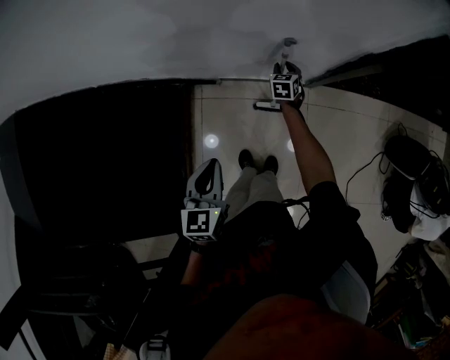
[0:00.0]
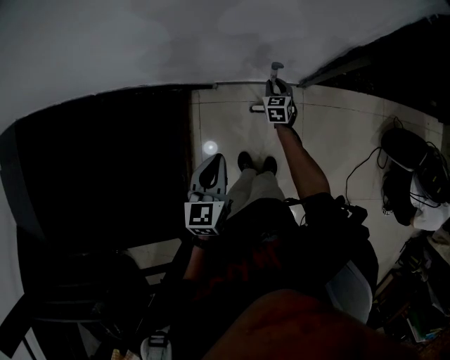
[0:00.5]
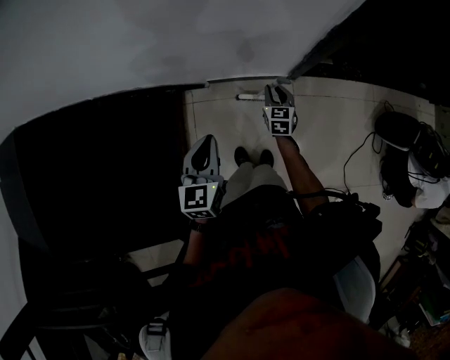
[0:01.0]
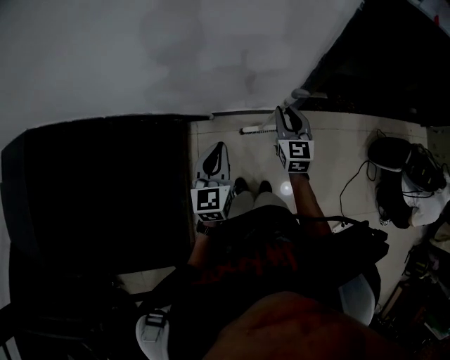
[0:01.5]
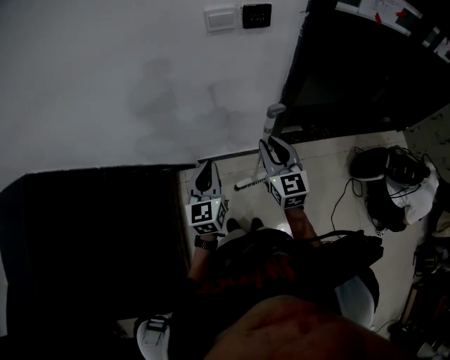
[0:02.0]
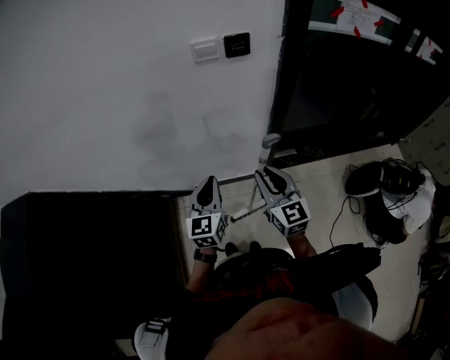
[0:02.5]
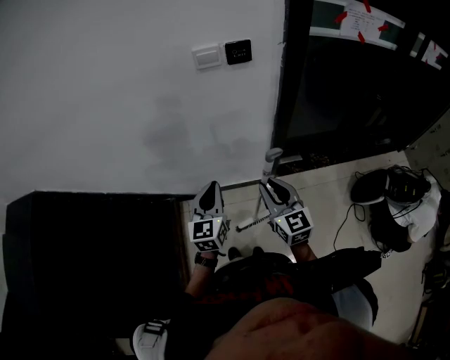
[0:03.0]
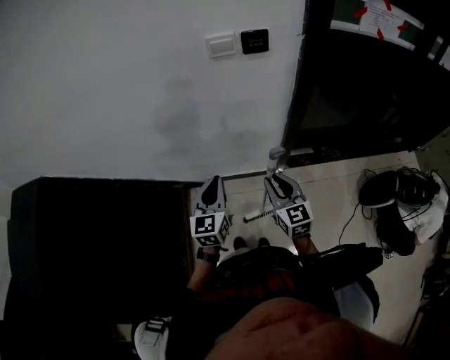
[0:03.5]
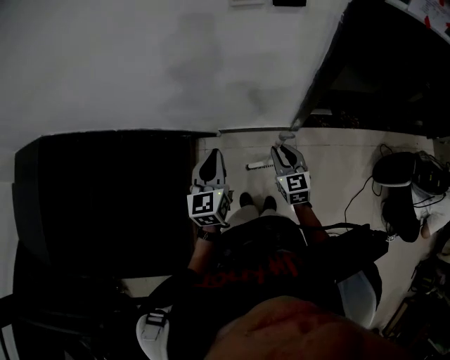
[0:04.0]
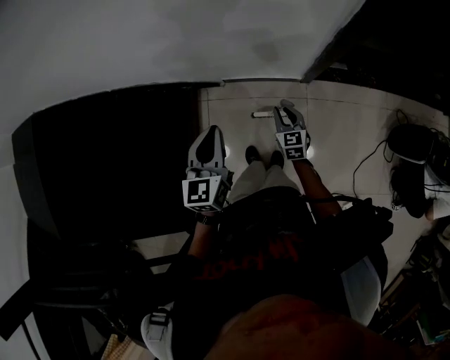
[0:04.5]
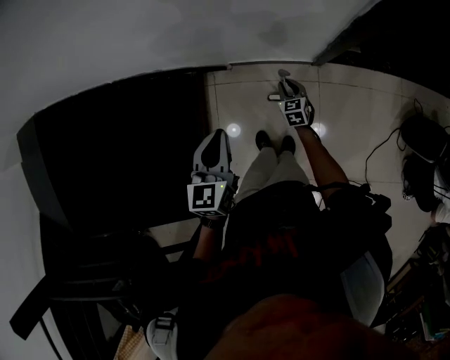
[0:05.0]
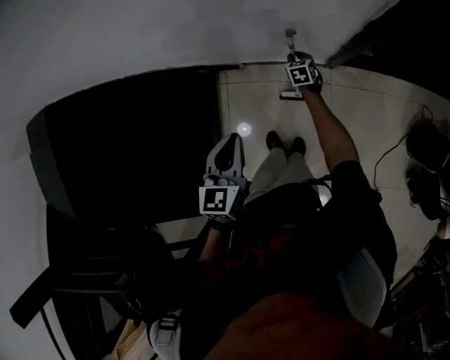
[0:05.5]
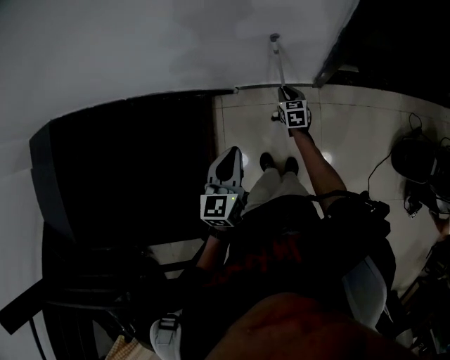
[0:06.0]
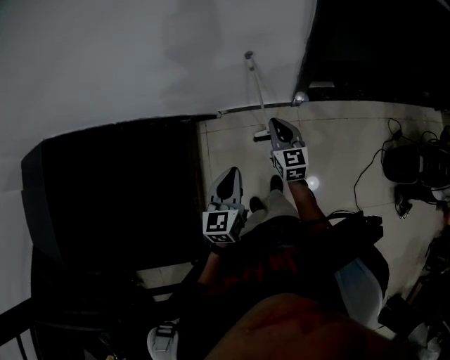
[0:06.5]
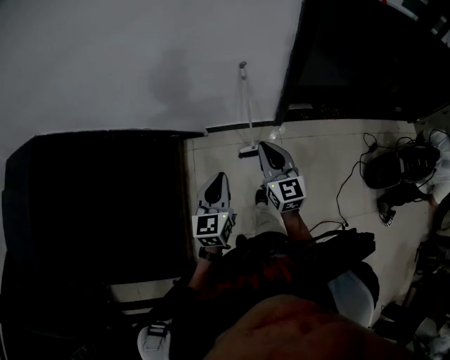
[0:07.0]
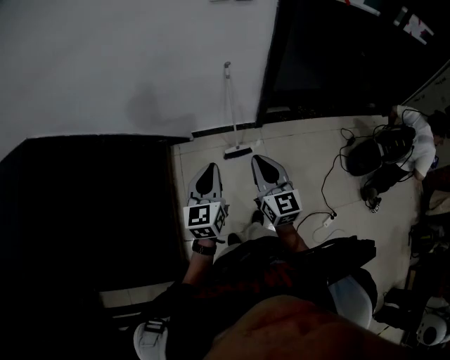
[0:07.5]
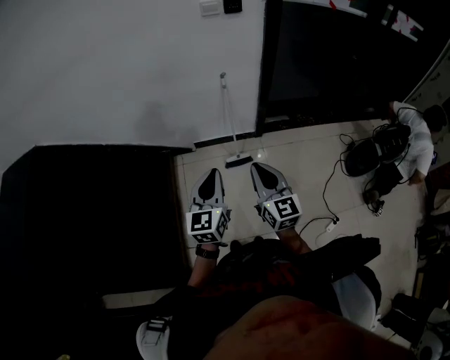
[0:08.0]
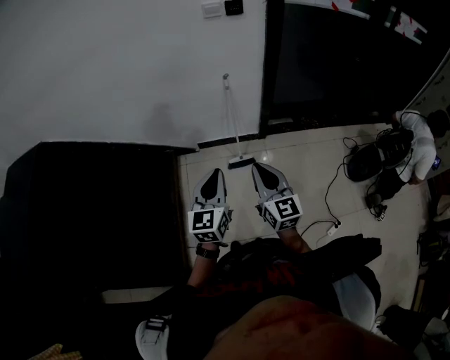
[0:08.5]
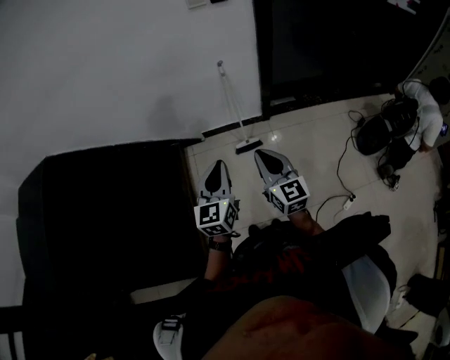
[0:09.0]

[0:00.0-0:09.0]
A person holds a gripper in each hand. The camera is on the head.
0:00.0 to 0:02.0: The left gripper goes approximately 15 cm upward, and changes its angle by roughly 30 degrees, while the right gripper is displaced upward and backward by some 60 cm, and points its fingers approximately 40 degrees further upward.
0:02.0 to 0:04.5: The right gripper is displaced downward by approximately 35 cm, and changes its angle by about 20 degrees, while the left gripper travels downward and to the left by approximately 10 cm.
0:04.5 to 0:07.0: The left gripper moves backward, some 25 cm. Meanwhile the right gripper heads upward and backward, covering some 35 cm, and changes its angle by some 30 degrees.
0:07.0 to 0:09.0: The left gripper shifts about 20 cm backward and upward. The right gripper shifts about 25 cm backward.

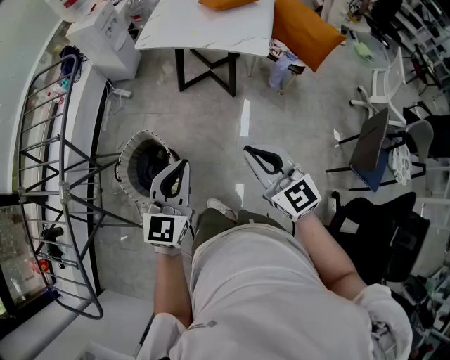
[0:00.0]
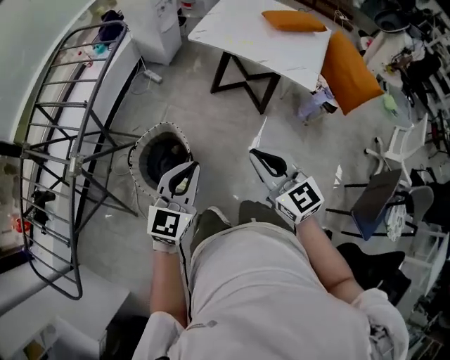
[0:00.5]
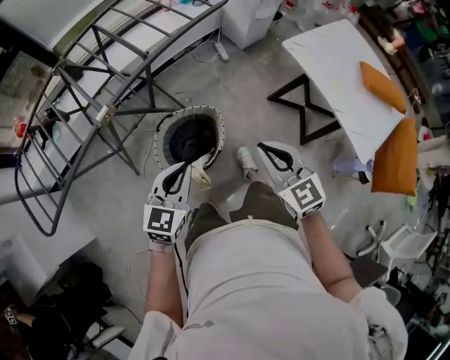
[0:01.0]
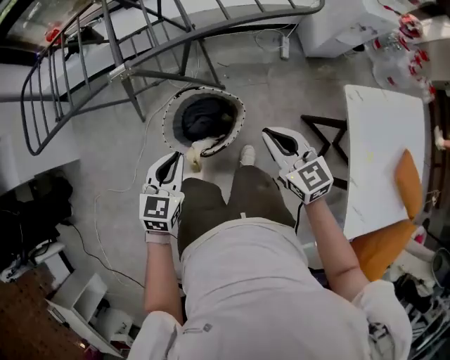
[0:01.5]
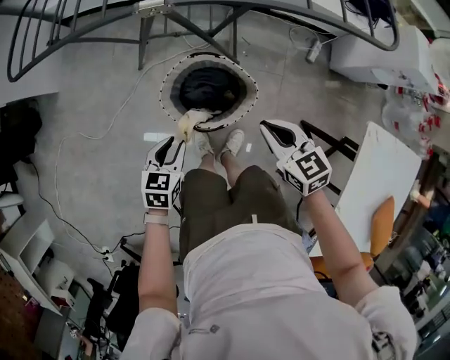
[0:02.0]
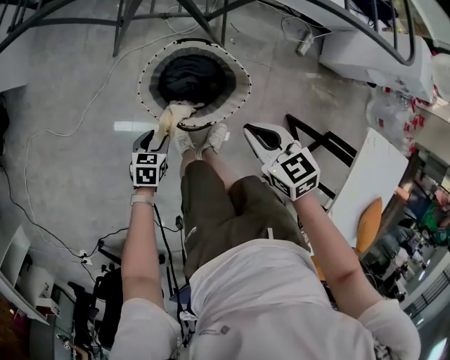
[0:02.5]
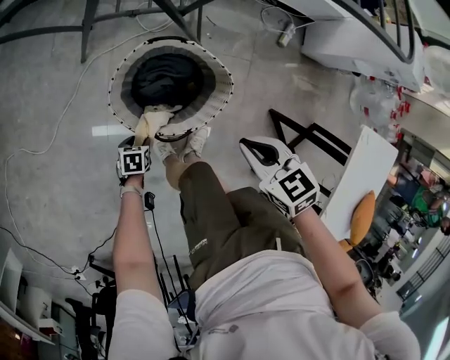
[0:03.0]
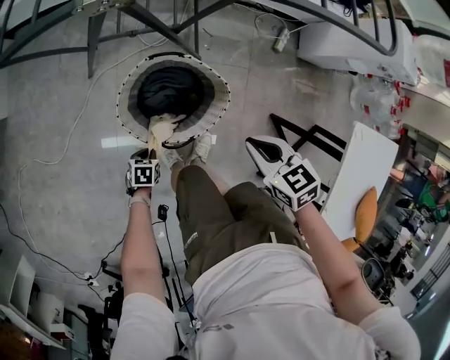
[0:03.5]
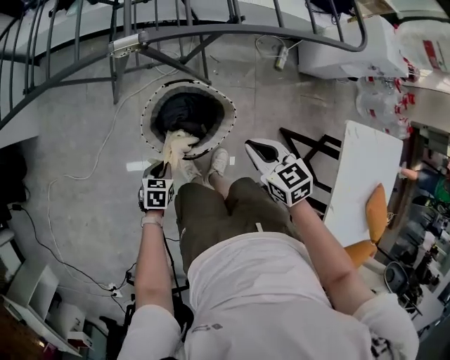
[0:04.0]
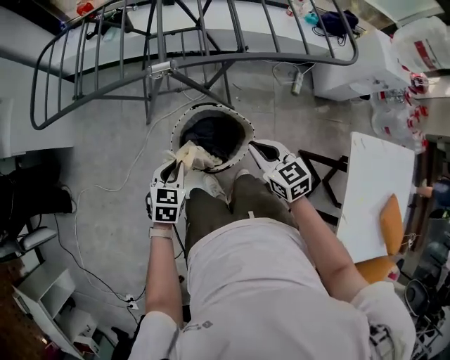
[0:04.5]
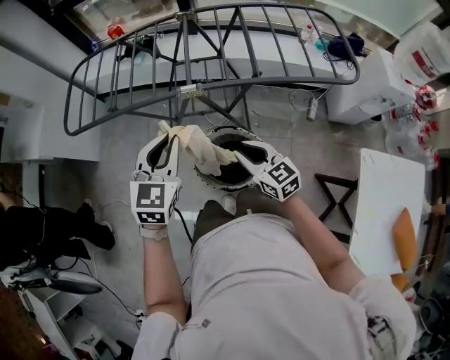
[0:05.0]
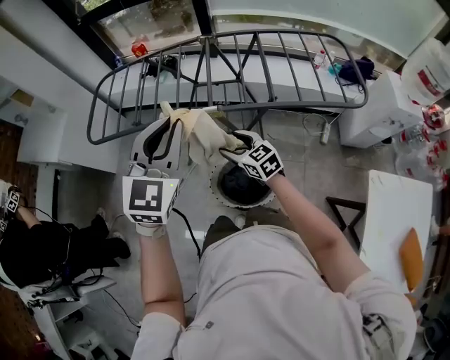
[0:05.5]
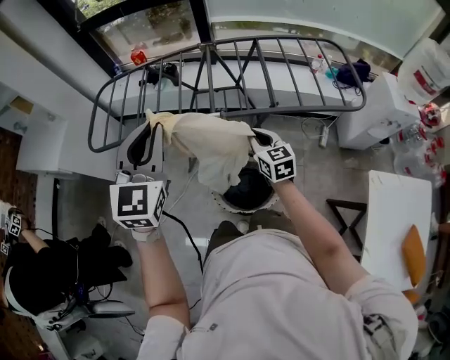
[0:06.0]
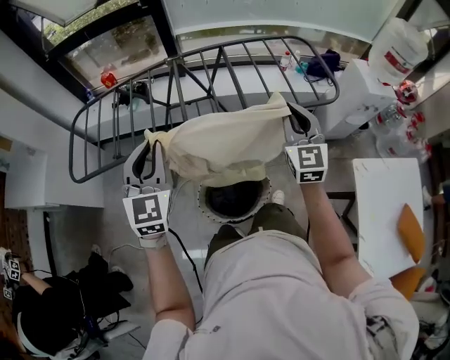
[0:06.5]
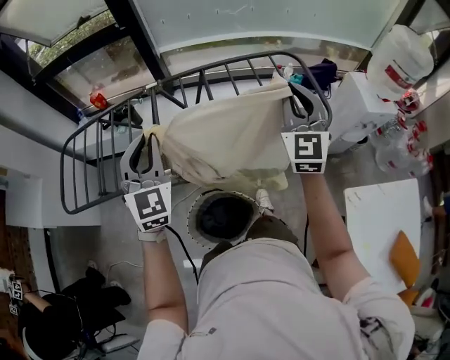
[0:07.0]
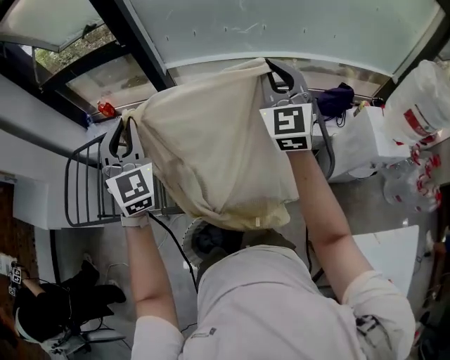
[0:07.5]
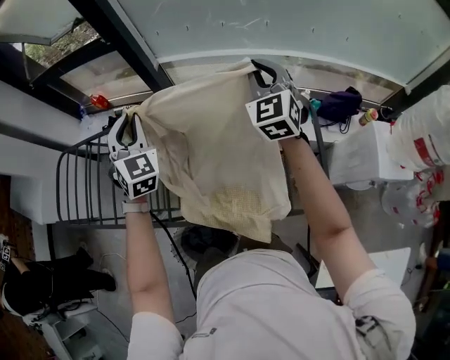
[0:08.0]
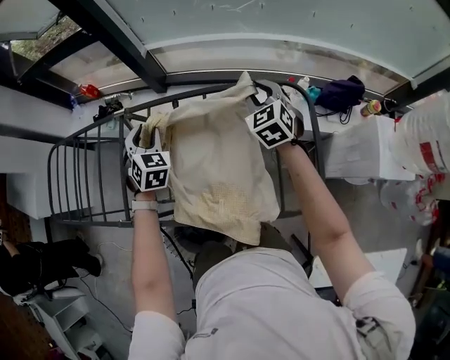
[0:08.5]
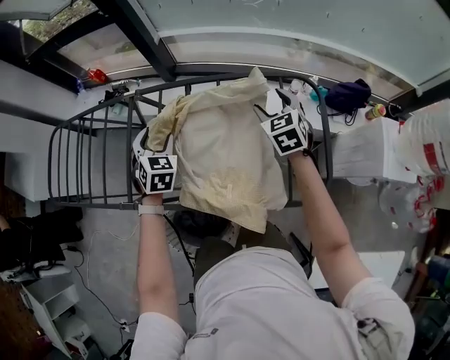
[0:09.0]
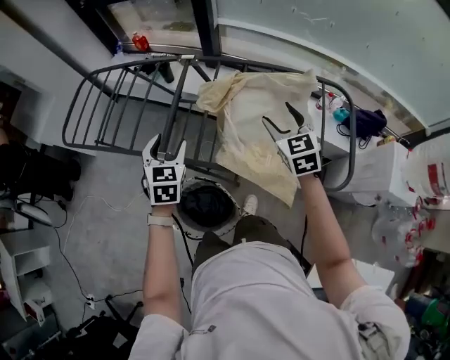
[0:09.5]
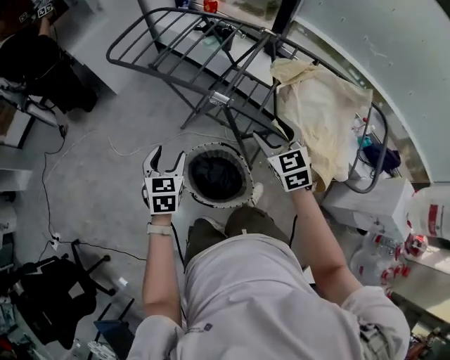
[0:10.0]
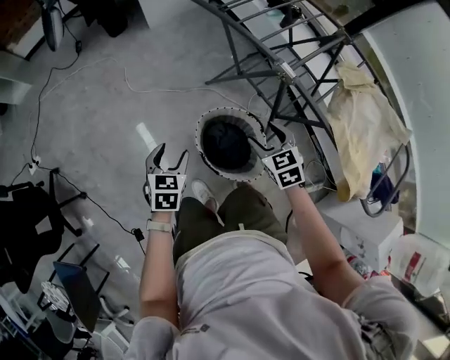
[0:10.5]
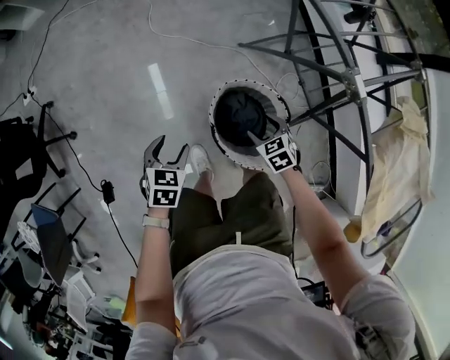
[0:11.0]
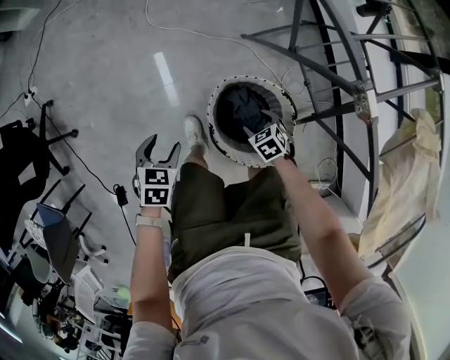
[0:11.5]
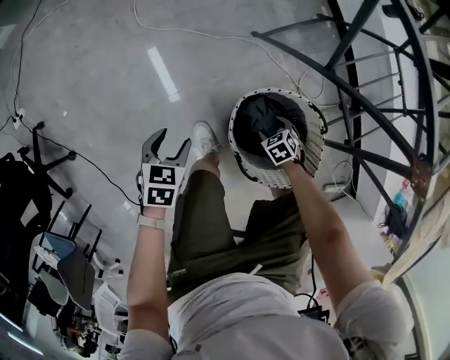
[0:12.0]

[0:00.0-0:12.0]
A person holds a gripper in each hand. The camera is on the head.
0:00.0 to 0:02.0: The right gripper moves some 50 cm, and changes its angle by about 90 degrees. Meanwhile the left gripper is displaced downward by about 30 cm, points its fingers roughly 40 degrees further downward, and opens its fingers.
0:02.0 to 0:04.0: The right gripper reaches roughly 10 cm downward, then returns. The left gripper travels downward by approximately 15 cm, and opens, then closes again.
0:04.0 to 0:06.0: The right gripper shifts some 25 cm forward, upward and to the left, rotates roughly 30 degrees, and opens, then closes again. The left gripper heads upward, covering about 60 cm, and tilts its fingers approximately 60 degrees upward.
0:06.0 to 0:08.0: Both grippers are carried forward and to the right, some 50 cm. The right gripper is displaced upward by some 25 cm, and swivels roughly 40 degrees, while the left gripper rotates approximately 30 degrees.
0:08.0 to 0:10.0: The pair of grippers is taken approximately 50 cm. The right gripper rotates some 50 degrees, and opens. Meanwhile the left gripper rotates approximately 50 degrees, and opens up.
0:10.0 to 0:12.0: The left gripper moves downward, roughly 40 cm, and rotates about 40 degrees. The right gripper goes some 60 cm downward, and points its fingers about 50 degrees further downward.

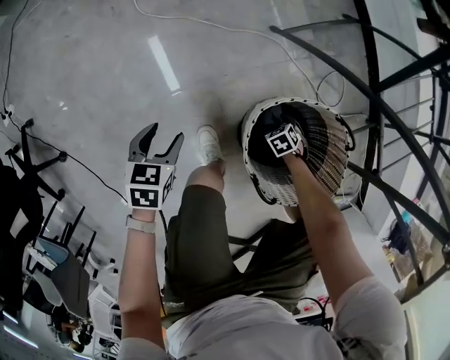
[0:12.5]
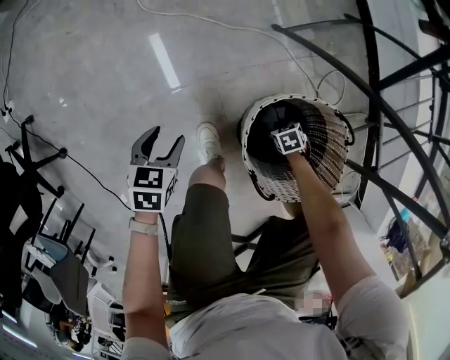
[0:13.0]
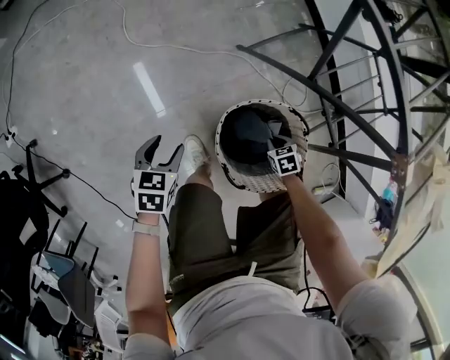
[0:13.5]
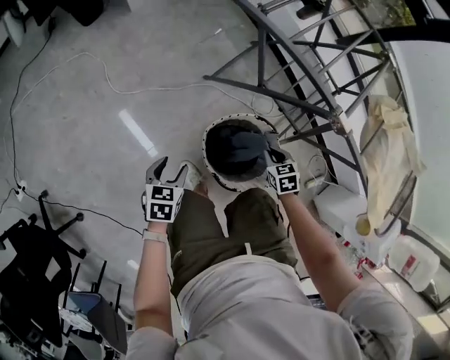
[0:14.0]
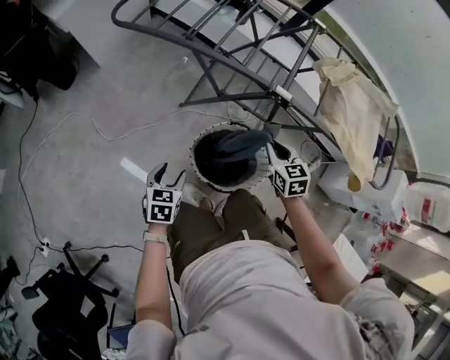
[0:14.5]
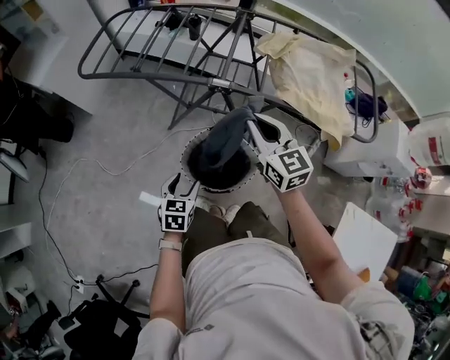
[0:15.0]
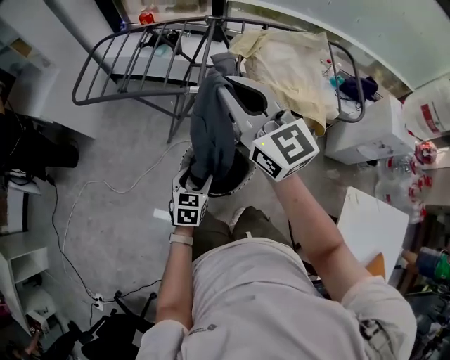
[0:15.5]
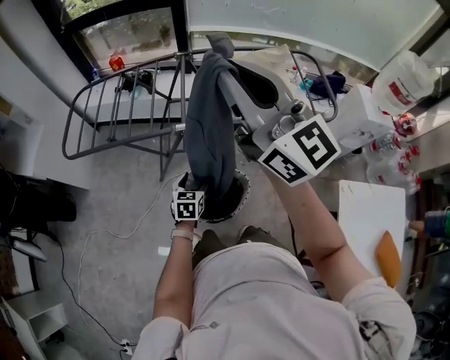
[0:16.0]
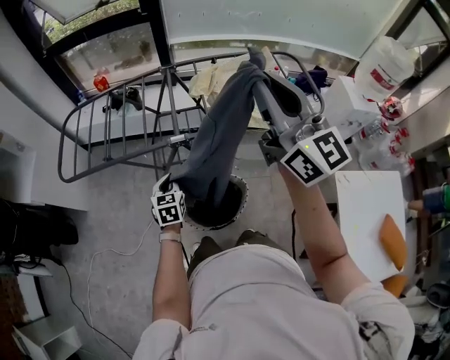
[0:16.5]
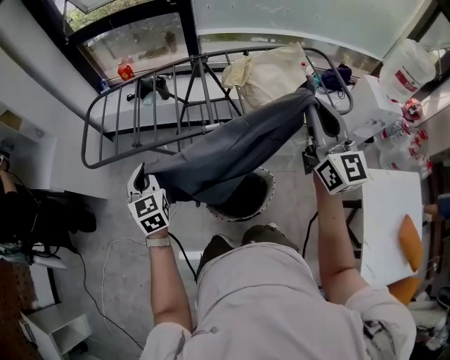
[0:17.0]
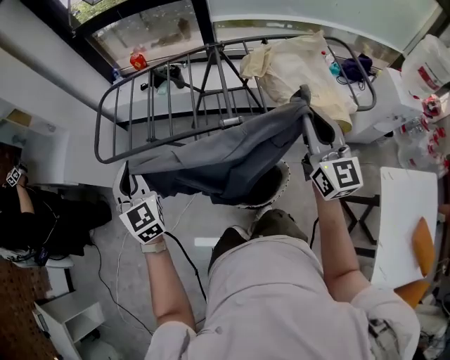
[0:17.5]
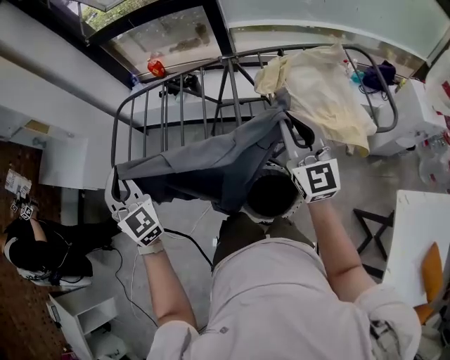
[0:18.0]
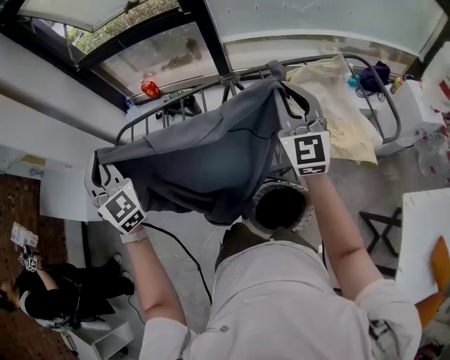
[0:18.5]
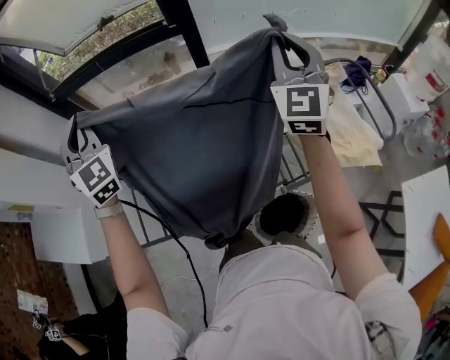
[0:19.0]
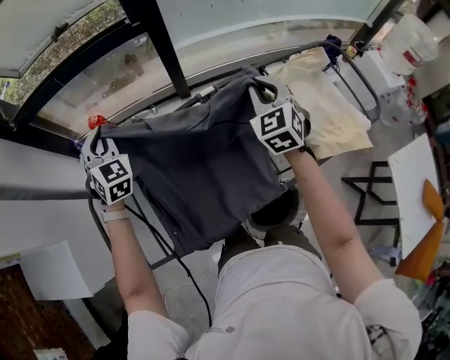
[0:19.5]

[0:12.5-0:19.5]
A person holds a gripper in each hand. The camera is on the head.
0:12.5 to 0:14.5: The right gripper is displaced upward by approximately 60 cm, tilts its fingers about 40 degrees upward, and closes up. The left gripper heads upward, covering about 30 cm, and swivels roughly 40 degrees.
0:14.5 to 0:16.0: The left gripper travels to the right, upward and forward by approximately 25 cm, and rotates approximately 30 degrees. Meanwhile the right gripper moves upward, roughly 50 cm, and tips its fingers upward by roughly 60 degrees.
0:16.0 to 0:17.5: The right gripper travels downward by about 20 cm, and changes its angle by some 30 degrees; the left gripper shifts approximately 40 cm to the left and upward, tilts its fingers roughly 30 degrees upward, and closes its fingers.
0:17.5 to 0:19.5: The pair of grippers is taken about 50 cm. The left gripper swivels some 30 degrees. The right gripper turns by approximately 50 degrees.
